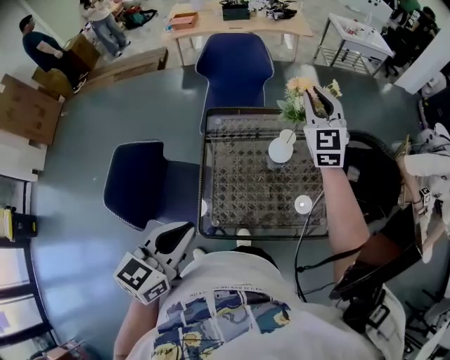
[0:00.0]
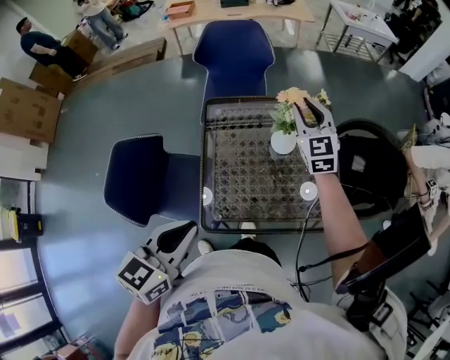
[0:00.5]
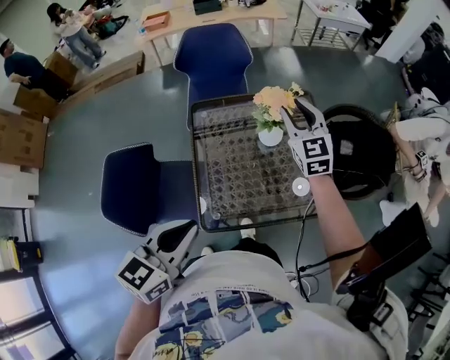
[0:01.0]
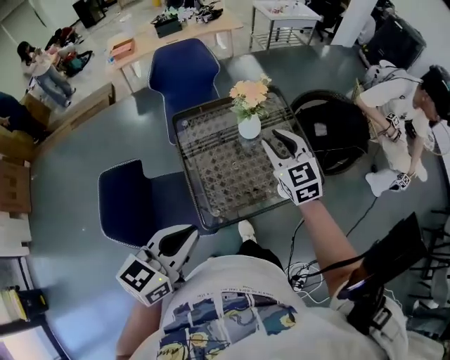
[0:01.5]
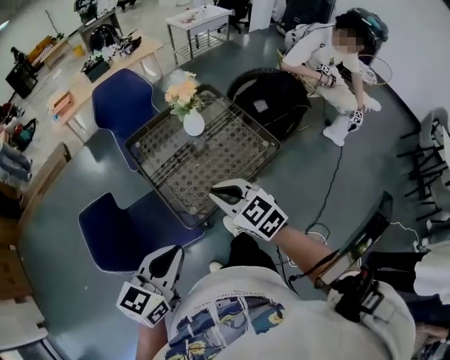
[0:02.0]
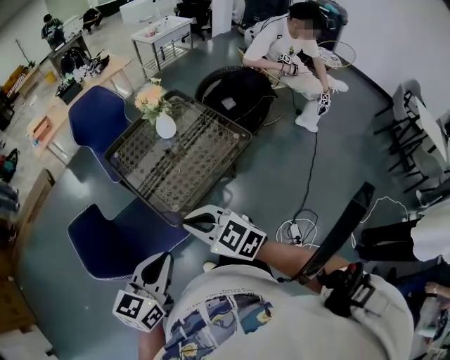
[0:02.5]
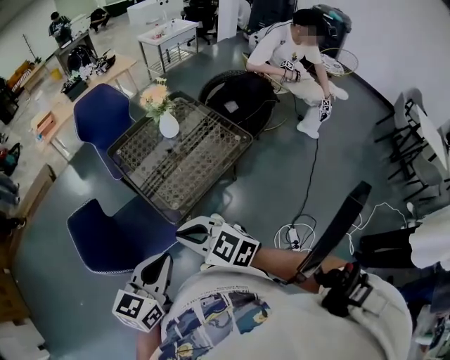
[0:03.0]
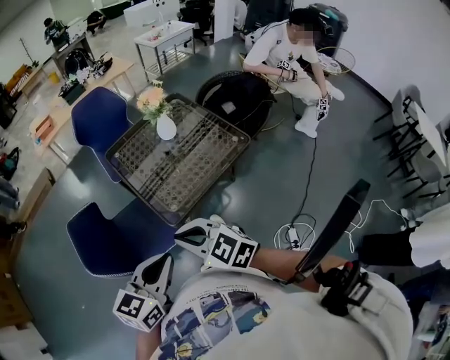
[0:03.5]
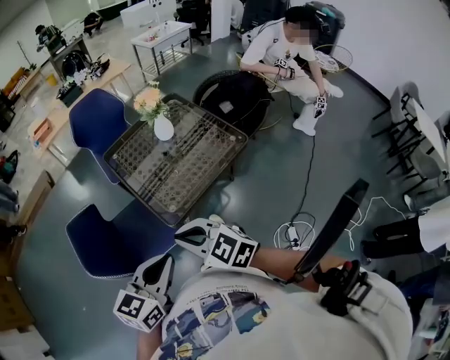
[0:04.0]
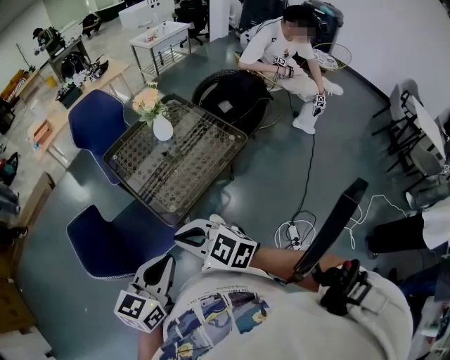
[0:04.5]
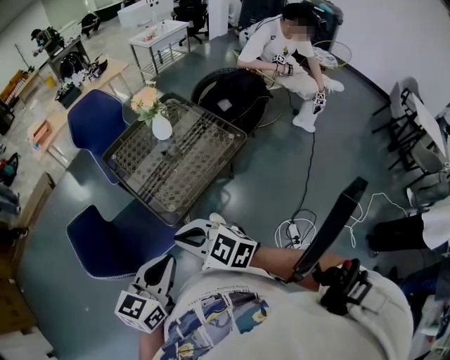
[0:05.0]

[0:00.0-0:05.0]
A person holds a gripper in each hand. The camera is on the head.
0:00.0 to 0:02.5: The left gripper moves backward, approximately 25 cm, and swivels some 40 degrees, while the right gripper goes some 60 cm backward, and swivels roughly 30 degrees.
0:02.5 to 0:05.0: The right gripper goes roughly 5 cm backward.

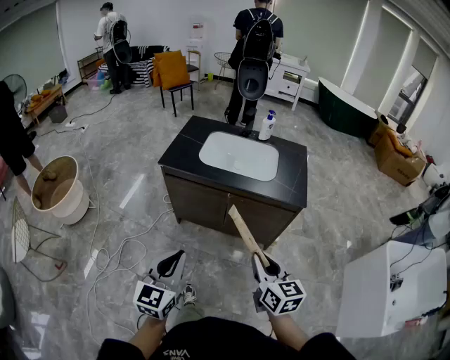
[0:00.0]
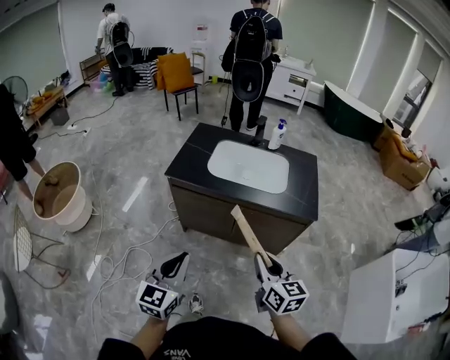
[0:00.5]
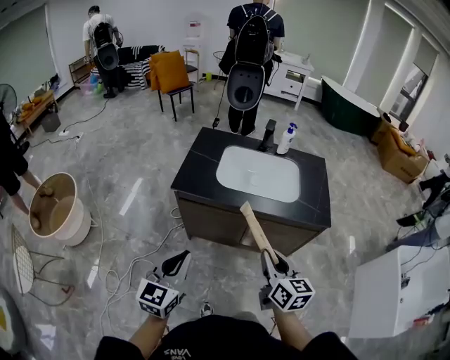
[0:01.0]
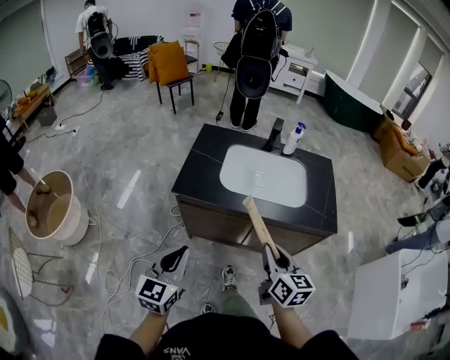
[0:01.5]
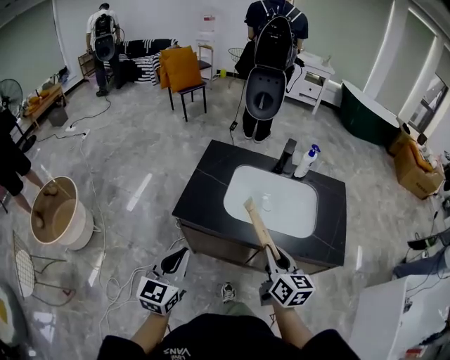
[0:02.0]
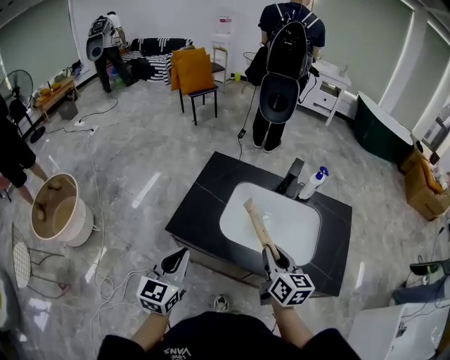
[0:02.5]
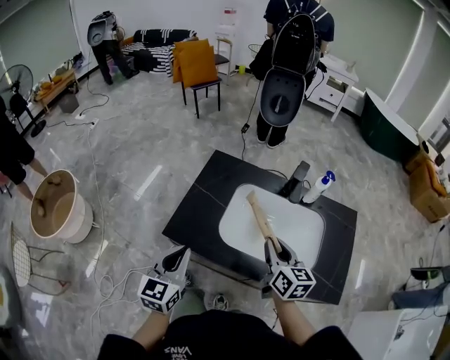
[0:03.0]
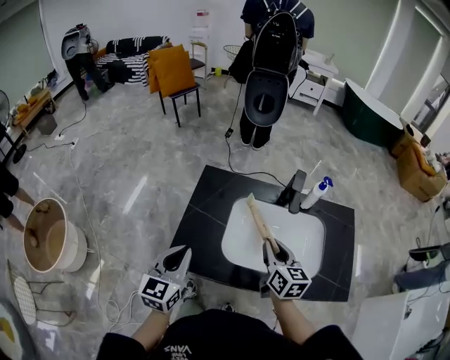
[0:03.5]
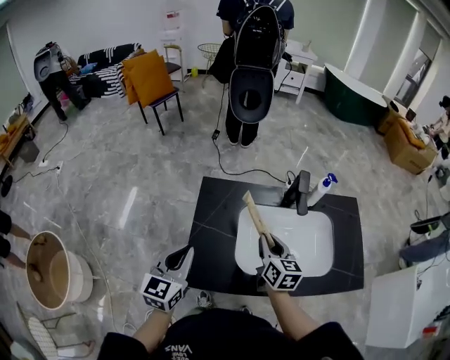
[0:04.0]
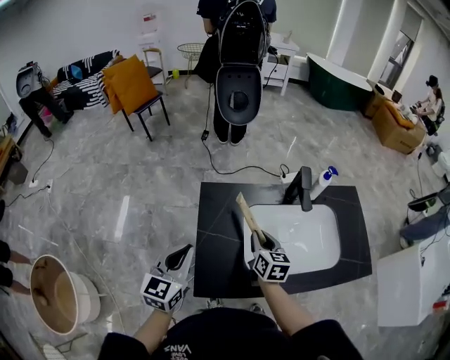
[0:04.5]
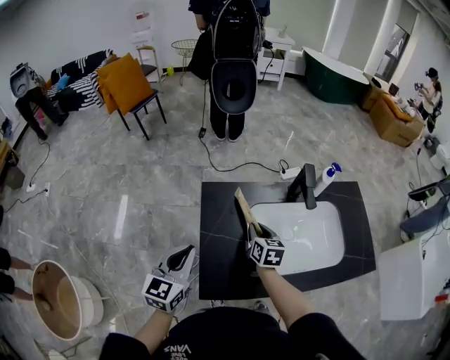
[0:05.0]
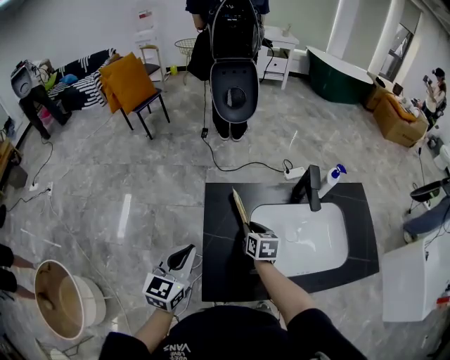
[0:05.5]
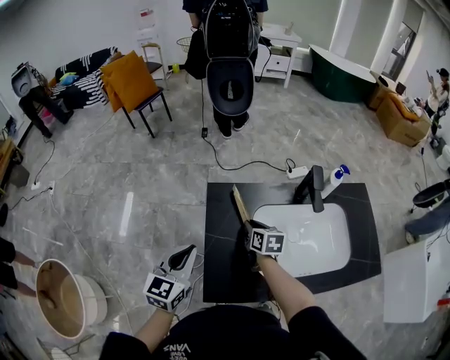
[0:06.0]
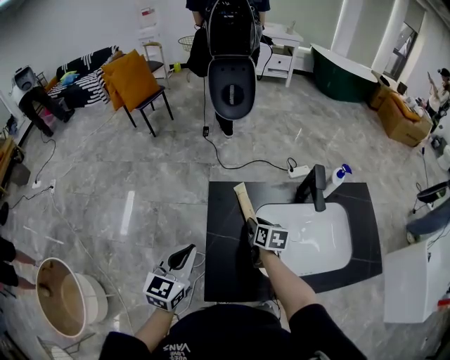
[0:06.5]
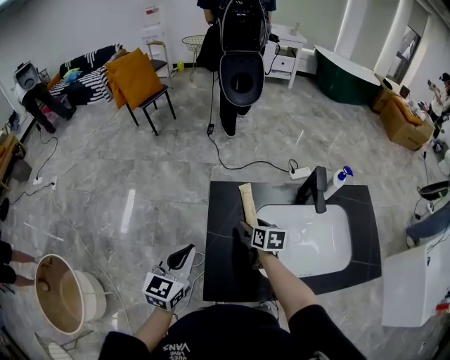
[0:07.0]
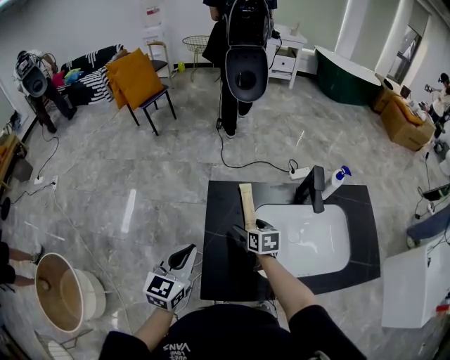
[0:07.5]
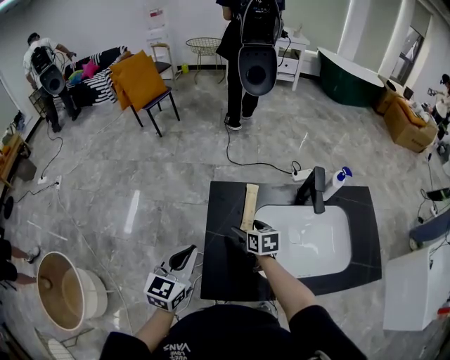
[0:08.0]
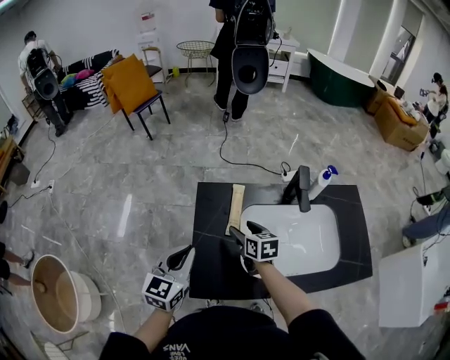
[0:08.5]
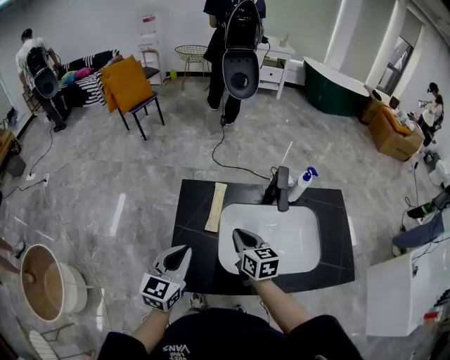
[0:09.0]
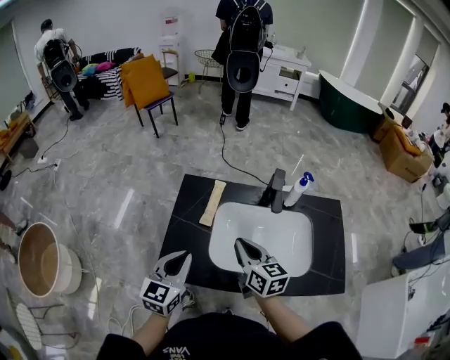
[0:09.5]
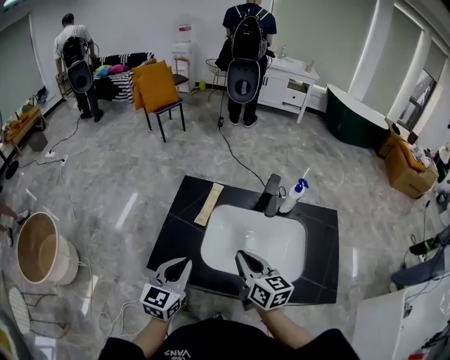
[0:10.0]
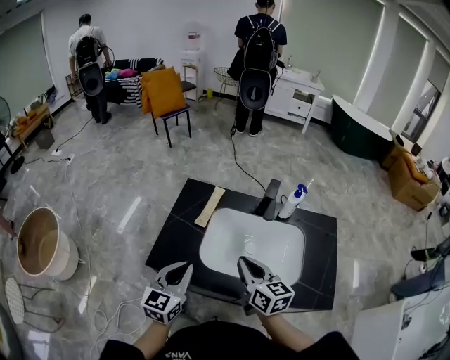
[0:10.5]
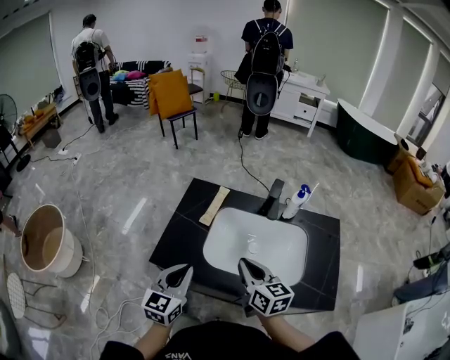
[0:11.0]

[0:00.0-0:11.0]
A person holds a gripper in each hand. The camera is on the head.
0:00.0 to 0:02.0: The right gripper is displaced forward by roughly 35 cm, while the left gripper heads forward and to the left, covering approximately 35 cm.
0:02.0 to 0:03.5: Both grippers move forward, about 20 cm.
0:03.5 to 0:05.5: The left gripper shifts approximately 15 cm forward and to the left, while the right gripper goes approximately 25 cm to the left, downward and forward, and rotates about 20 degrees.
0:05.5 to 0:07.5: The right gripper opens its fingers.
0:07.5 to 0:09.0: The left gripper travels to the right by about 10 cm; the right gripper moves upward, to the right and backward, approximately 15 cm, and closes up.
0:09.0 to 0:11.0: Both grippers travel together backward and to the right, approximately 15 cm.

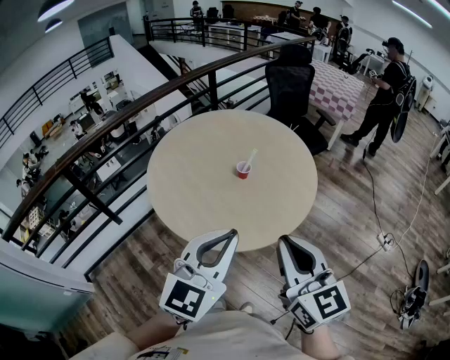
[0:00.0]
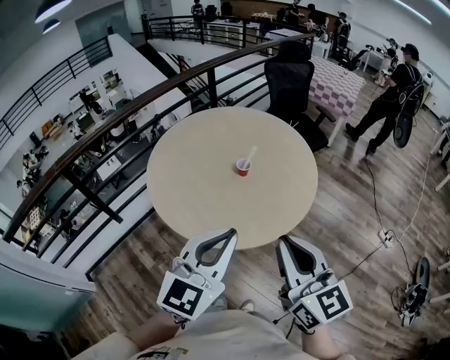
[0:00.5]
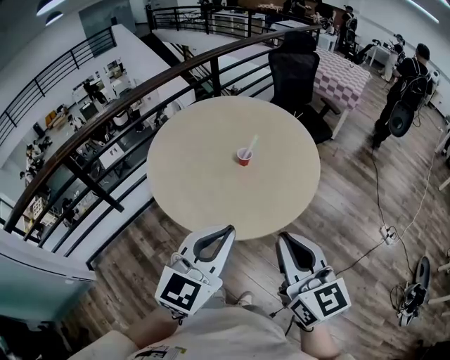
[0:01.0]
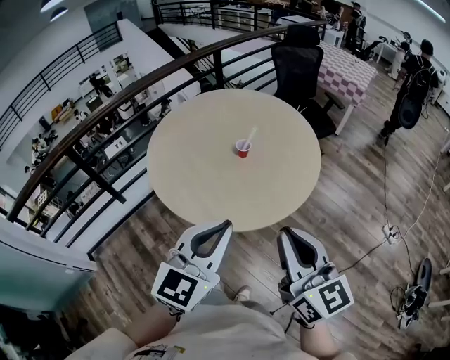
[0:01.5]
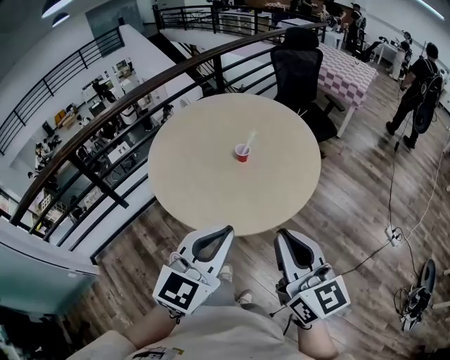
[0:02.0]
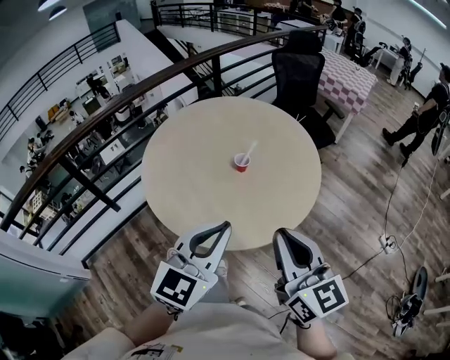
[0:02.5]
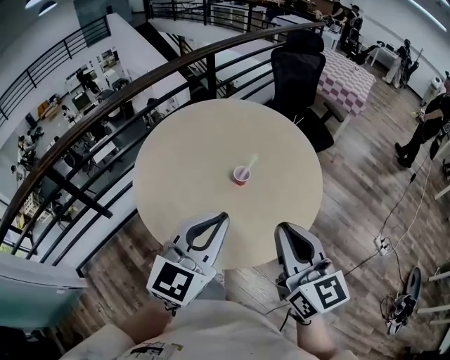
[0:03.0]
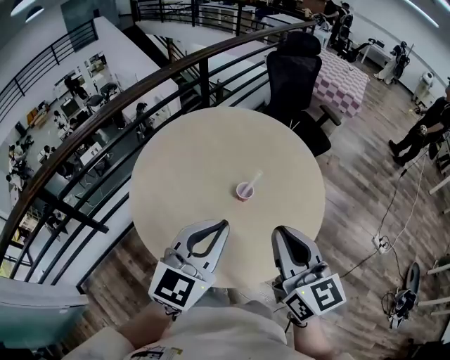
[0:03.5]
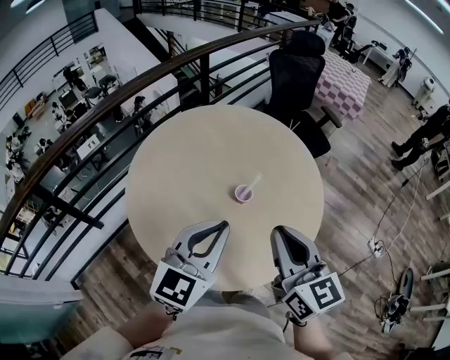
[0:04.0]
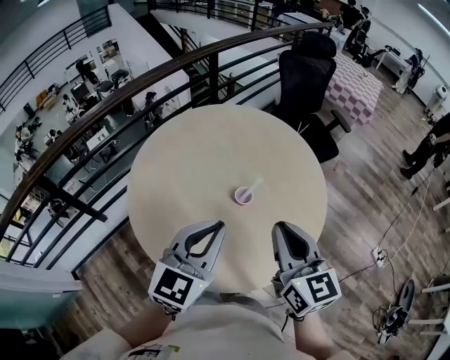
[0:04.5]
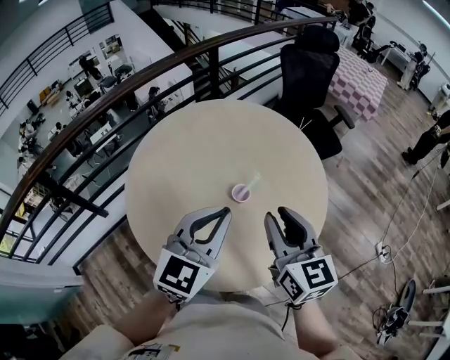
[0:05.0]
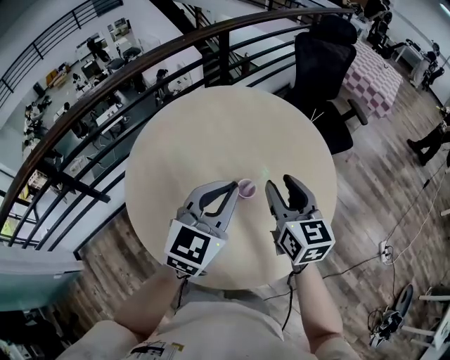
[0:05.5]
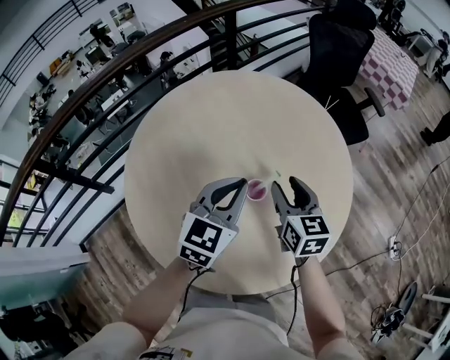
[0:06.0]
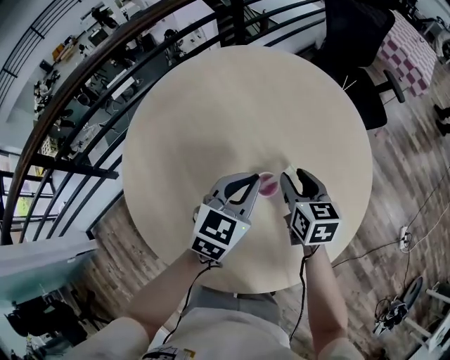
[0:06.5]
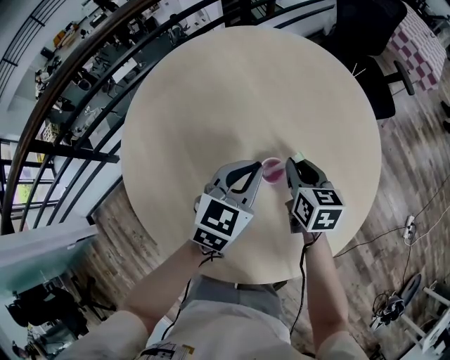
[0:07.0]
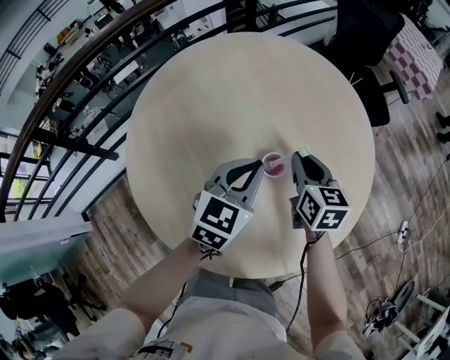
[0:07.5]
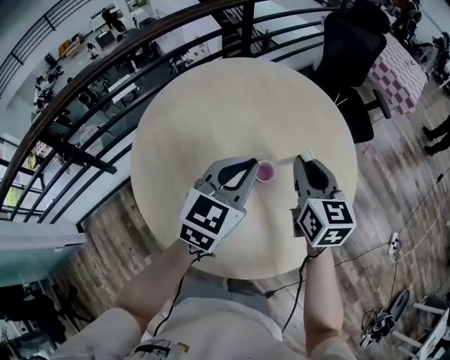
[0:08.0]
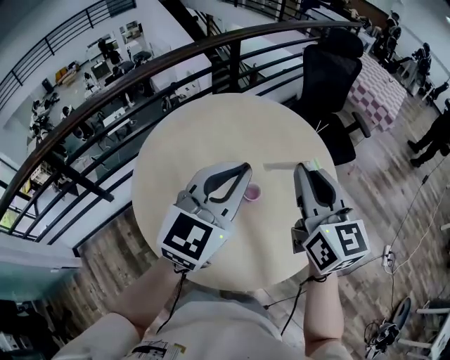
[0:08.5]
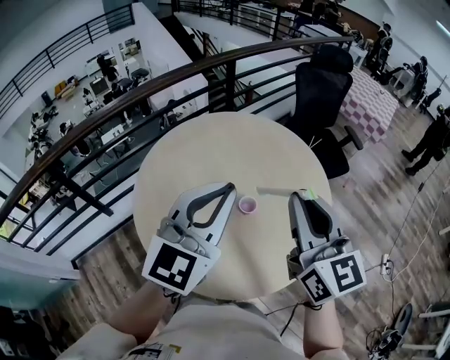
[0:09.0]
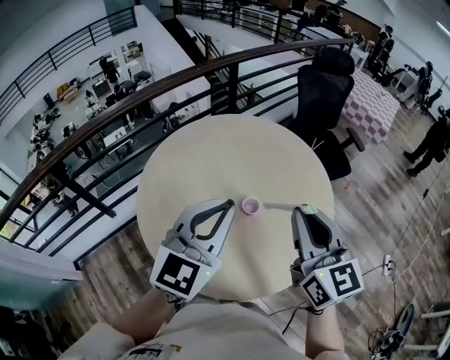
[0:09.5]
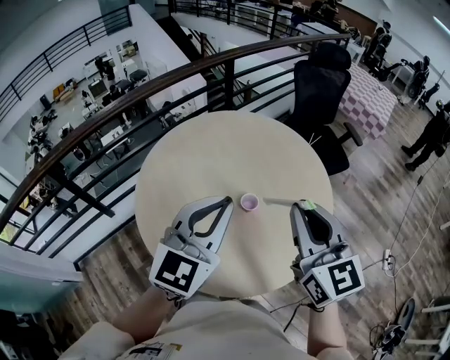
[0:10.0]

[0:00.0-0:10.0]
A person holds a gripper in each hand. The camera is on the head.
0:00.0 to 0:02.0: Both grippers move to the right, about 5 cm.
0:02.0 to 0:04.0: Both grippers travel together forward and to the left, approximately 30 cm.
0:04.0 to 0:06.0: The grippers both shift forward and downward by some 25 cm. The right gripper opens.
0:06.0 to 0:08.0: The right gripper moves approximately 10 cm downward and comes back, and closes; the left gripper goes downward and returns, some 10 cm each way.
0:08.0 to 0:10.0: The two grippers go some 20 cm upward and backward.

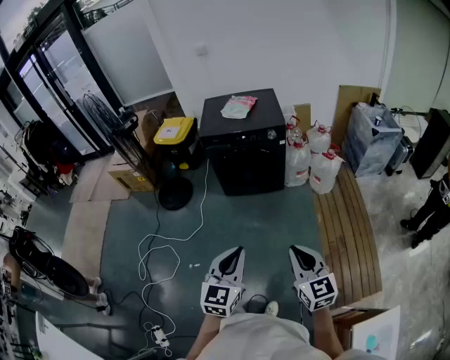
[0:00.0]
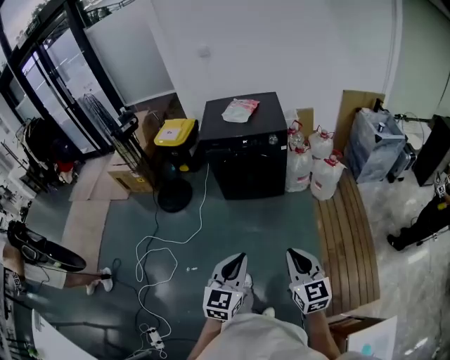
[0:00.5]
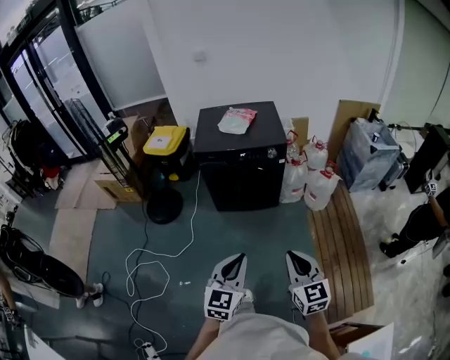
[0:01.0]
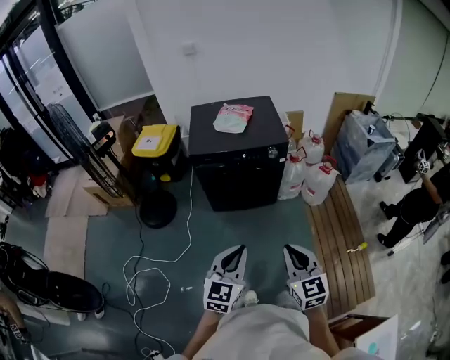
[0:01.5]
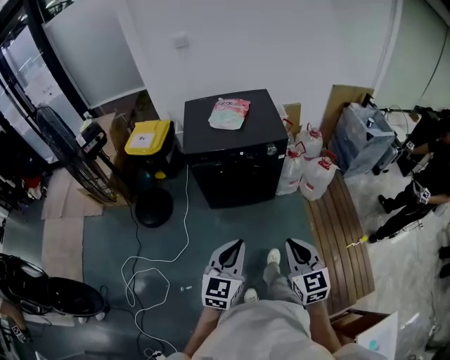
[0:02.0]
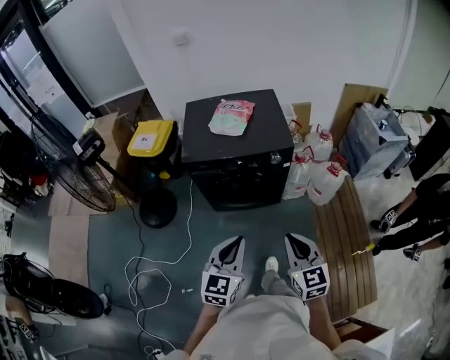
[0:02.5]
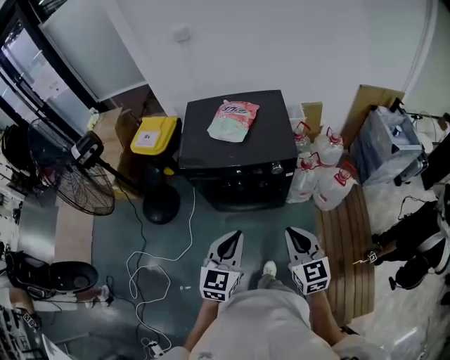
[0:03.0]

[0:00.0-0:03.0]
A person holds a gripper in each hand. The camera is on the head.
0:00.0 to 0:01.5: Both grippers move forward, approximately 20 cm.
0:01.5 to 0:03.0: The grippers both shift forward by approximately 25 cm.
